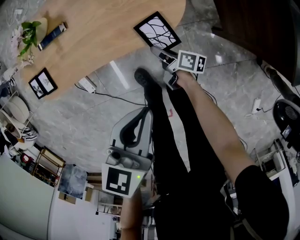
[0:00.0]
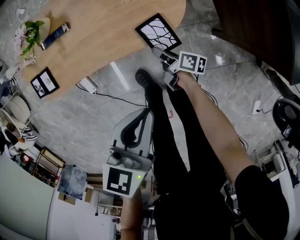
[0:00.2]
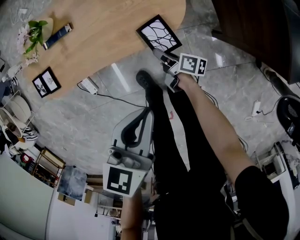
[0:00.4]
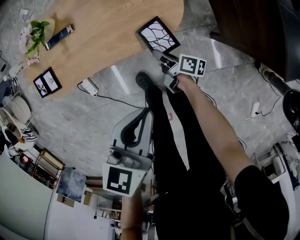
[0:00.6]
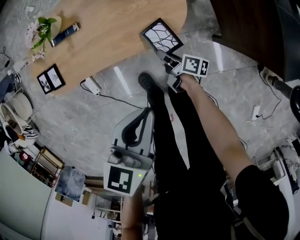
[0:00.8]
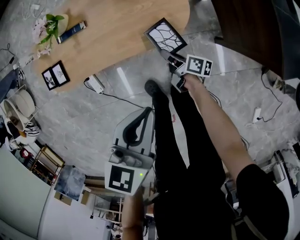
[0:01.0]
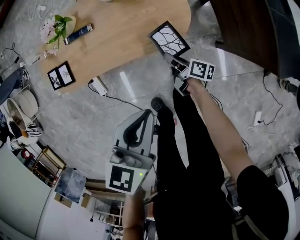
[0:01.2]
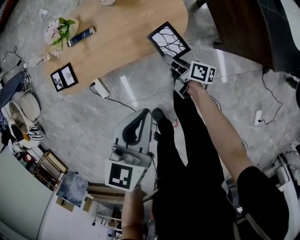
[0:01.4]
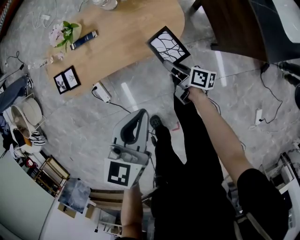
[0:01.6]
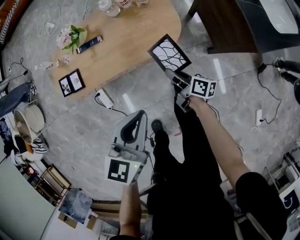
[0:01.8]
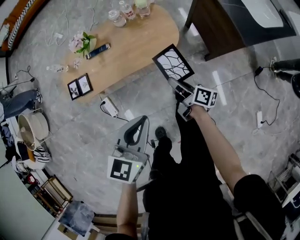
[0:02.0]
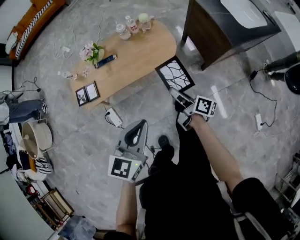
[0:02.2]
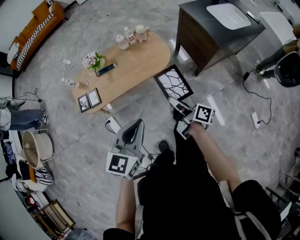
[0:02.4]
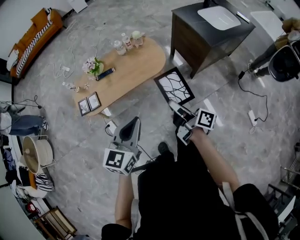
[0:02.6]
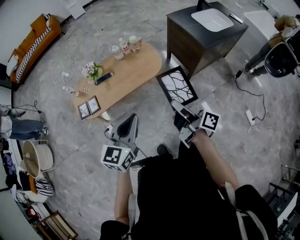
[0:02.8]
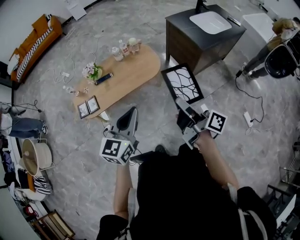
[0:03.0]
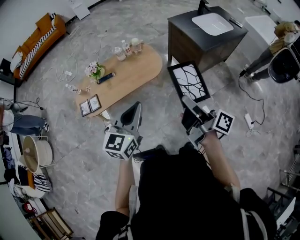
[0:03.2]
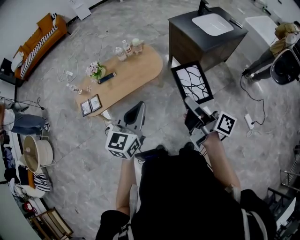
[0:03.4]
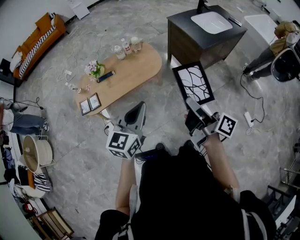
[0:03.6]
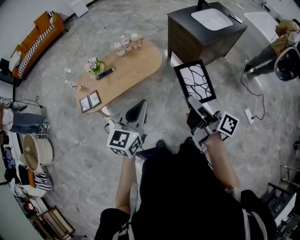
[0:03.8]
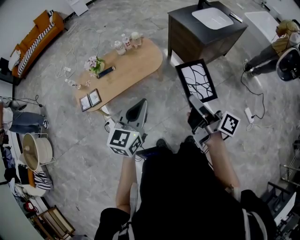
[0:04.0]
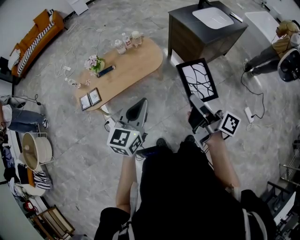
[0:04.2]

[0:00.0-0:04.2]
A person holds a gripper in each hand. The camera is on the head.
0:00.0 to 0:01.4: Both grippers travel together upward, approximately 10 cm.
0:01.4 to 0:02.8: The left gripper heads backward and upward, covering about 35 cm, and turns by approximately 30 degrees, while the right gripper heads upward and backward, covering some 60 cm, and swivels roughly 30 degrees.
0:02.8 to 0:04.2: The right gripper moves upward, approximately 10 cm.

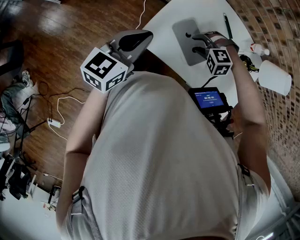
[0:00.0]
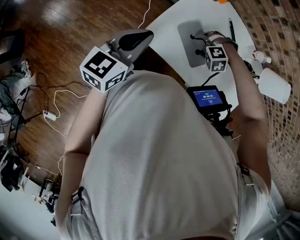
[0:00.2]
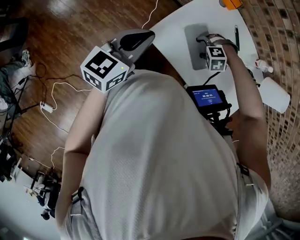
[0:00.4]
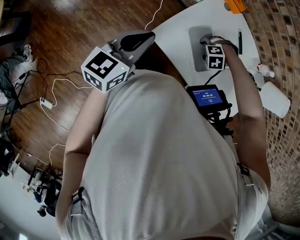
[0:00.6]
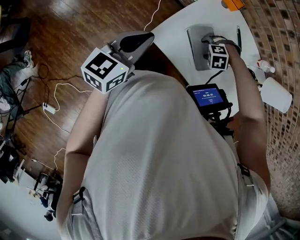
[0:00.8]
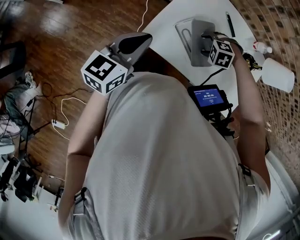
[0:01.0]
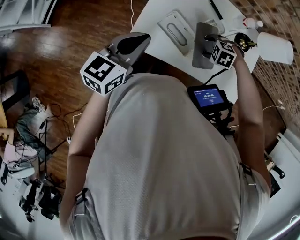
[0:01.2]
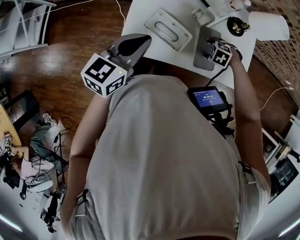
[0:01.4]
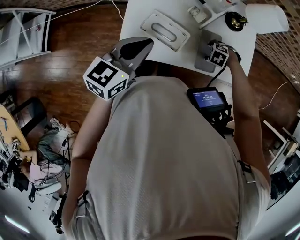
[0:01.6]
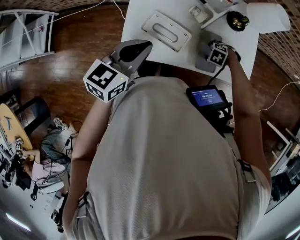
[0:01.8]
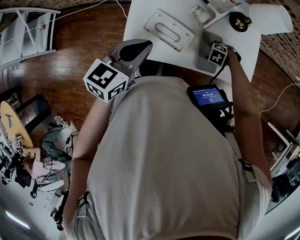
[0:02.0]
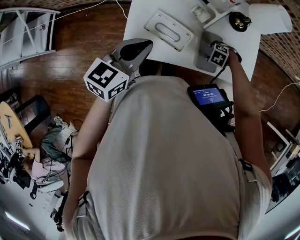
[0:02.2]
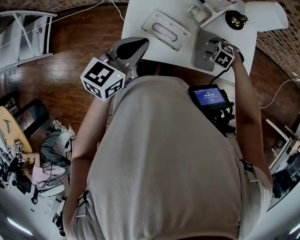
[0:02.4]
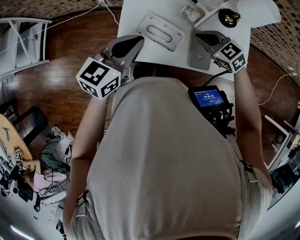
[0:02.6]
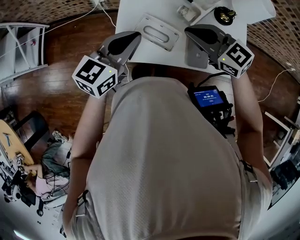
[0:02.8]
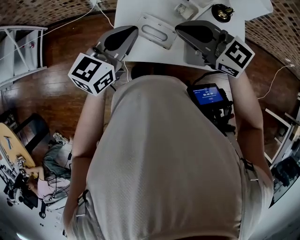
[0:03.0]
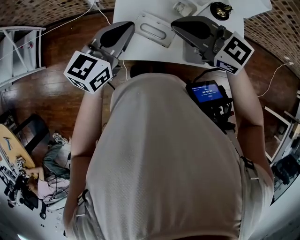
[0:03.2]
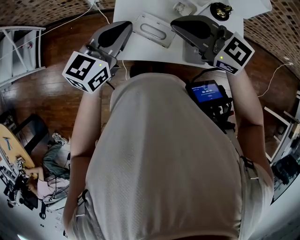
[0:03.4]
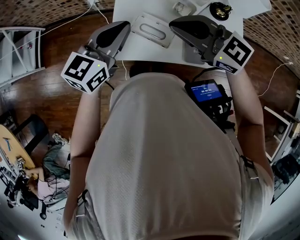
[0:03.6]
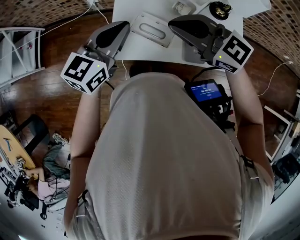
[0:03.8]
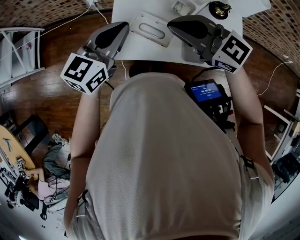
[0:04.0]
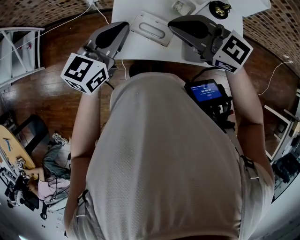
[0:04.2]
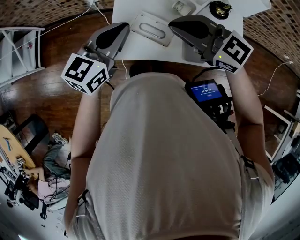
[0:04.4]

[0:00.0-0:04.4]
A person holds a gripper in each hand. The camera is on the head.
0:00.0 to 0:01.4: The right gripper goes up and down, about 5 cm each way, reversing 2 times, and changes its angle by roughly 40 degrees.
0:01.4 to 0:03.0: The right gripper travels upward by about 30 cm, points its fingers approximately 70 degrees further upward, and closes. The left gripper shifts by approximately 5 cm.
0:03.0 to 0:04.4: There are only small adjustments of the grippers.

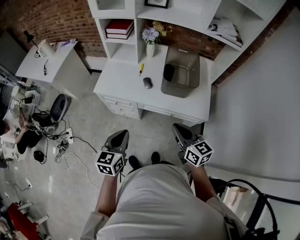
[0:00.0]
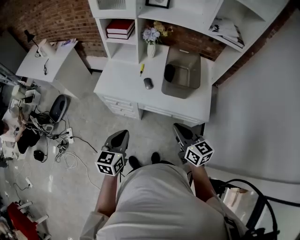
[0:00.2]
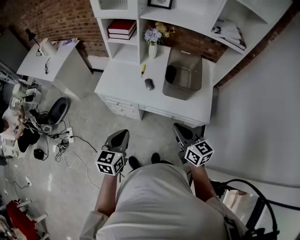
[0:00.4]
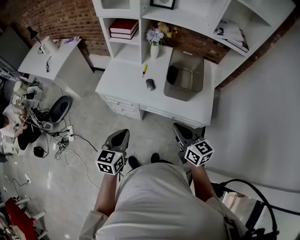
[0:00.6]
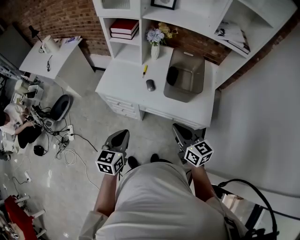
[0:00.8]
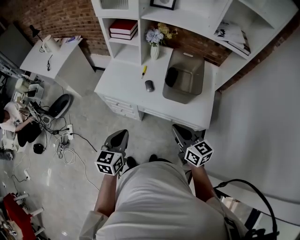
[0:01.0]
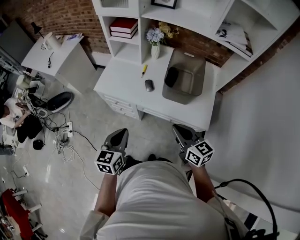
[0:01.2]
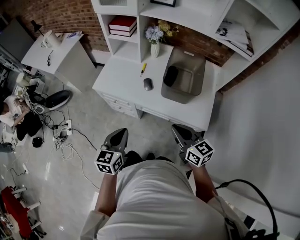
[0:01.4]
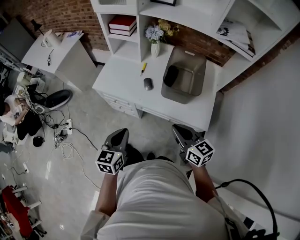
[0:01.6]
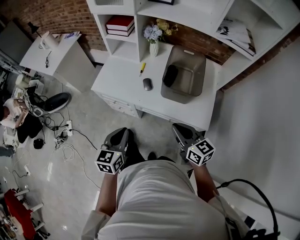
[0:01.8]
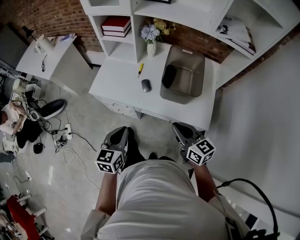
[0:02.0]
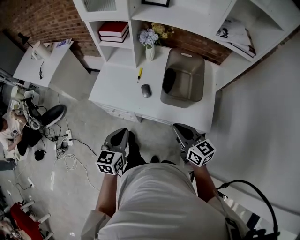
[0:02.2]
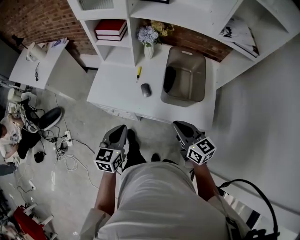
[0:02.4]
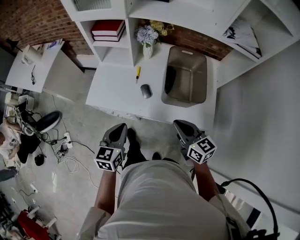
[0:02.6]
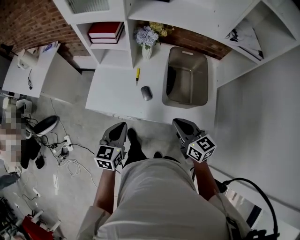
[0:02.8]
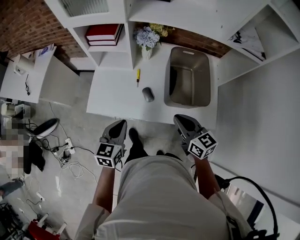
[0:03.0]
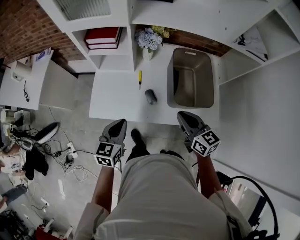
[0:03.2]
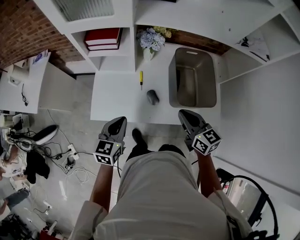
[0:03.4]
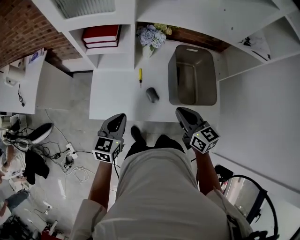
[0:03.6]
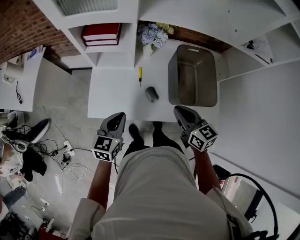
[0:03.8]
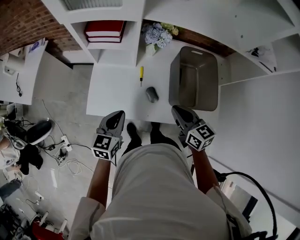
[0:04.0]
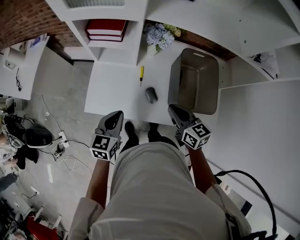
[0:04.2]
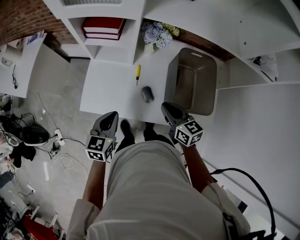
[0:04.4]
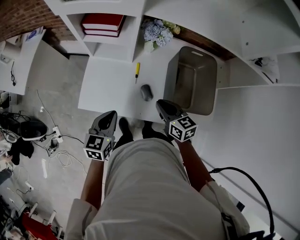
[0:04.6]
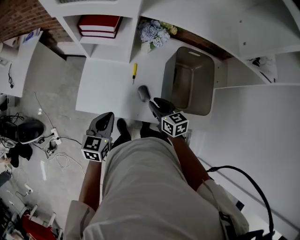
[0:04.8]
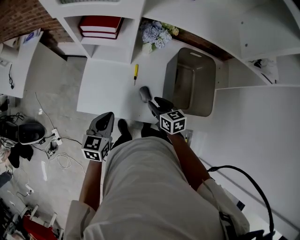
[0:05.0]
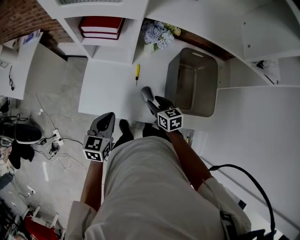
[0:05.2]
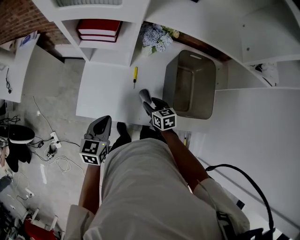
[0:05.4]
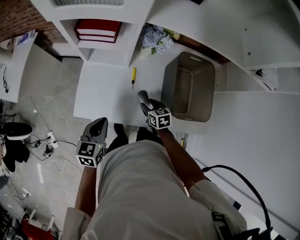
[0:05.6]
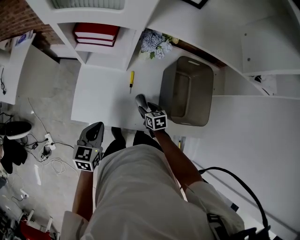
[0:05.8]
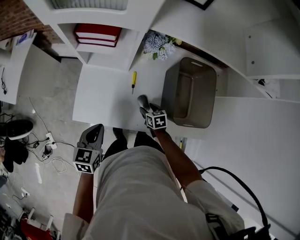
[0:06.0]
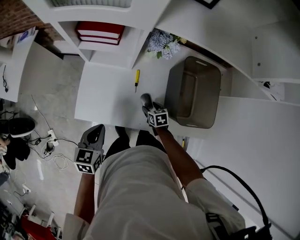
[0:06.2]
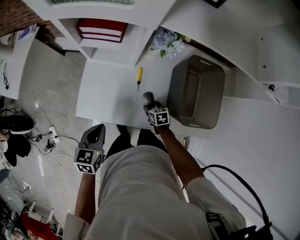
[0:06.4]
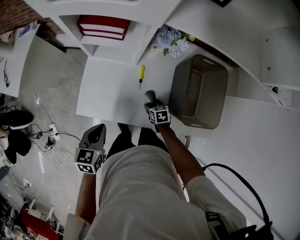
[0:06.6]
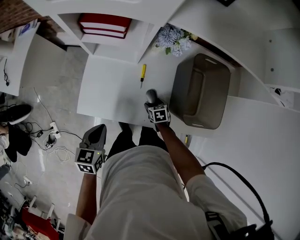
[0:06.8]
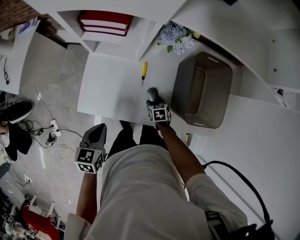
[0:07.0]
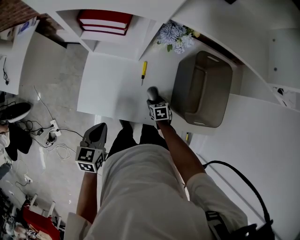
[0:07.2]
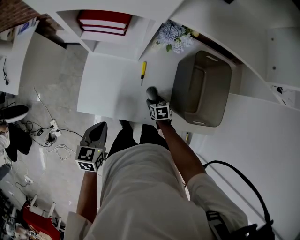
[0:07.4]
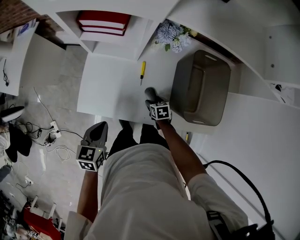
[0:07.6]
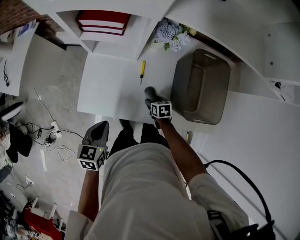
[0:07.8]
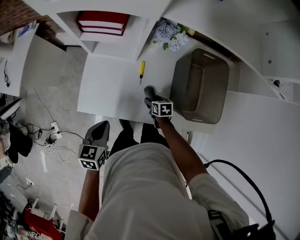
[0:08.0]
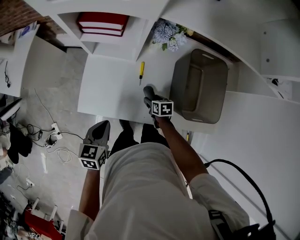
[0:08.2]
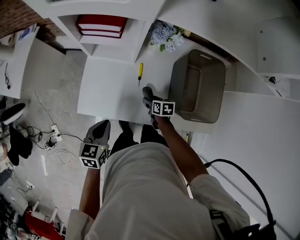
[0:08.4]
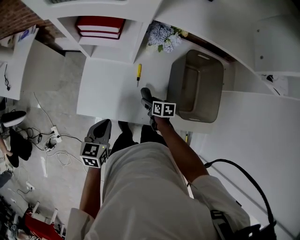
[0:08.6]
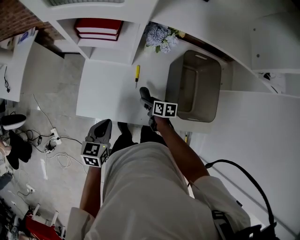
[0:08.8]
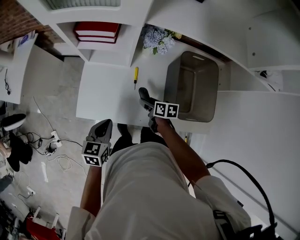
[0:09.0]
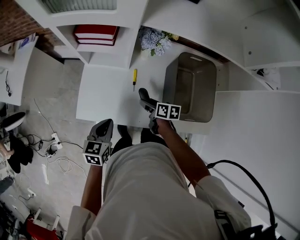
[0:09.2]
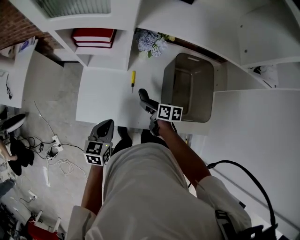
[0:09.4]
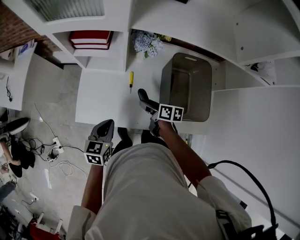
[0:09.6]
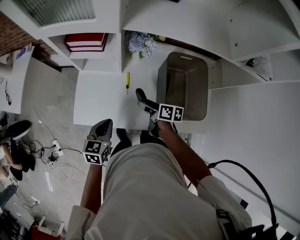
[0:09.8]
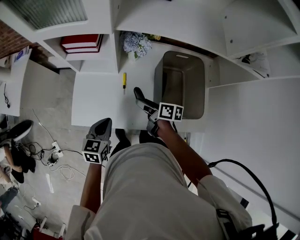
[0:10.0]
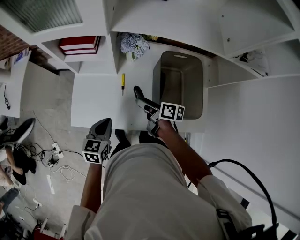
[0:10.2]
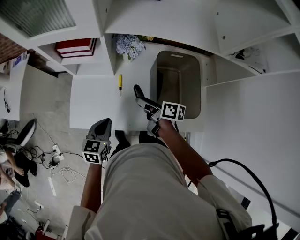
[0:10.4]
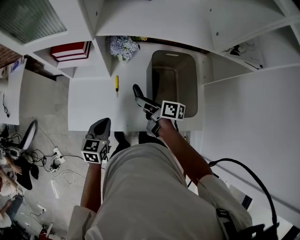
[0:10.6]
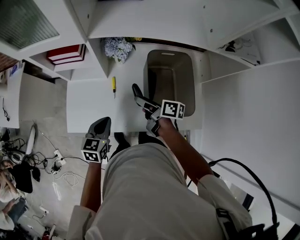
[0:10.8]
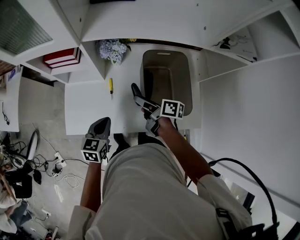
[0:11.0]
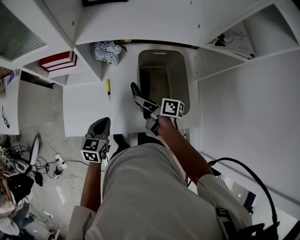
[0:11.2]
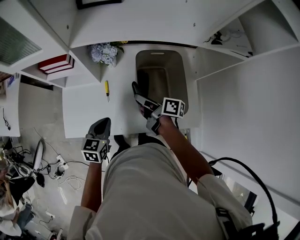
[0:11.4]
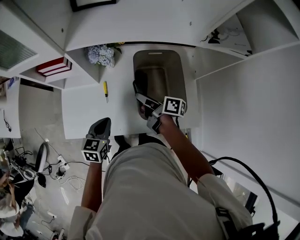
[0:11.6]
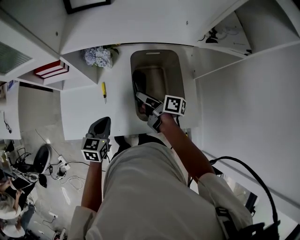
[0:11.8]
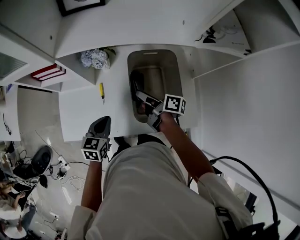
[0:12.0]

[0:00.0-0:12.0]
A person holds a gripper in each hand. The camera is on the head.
0:00.0 to 0:01.6: The two grippers go about 5 cm to the right.
0:01.6 to 0:03.0: Both grippers travel together forward, approximately 20 cm.
0:03.0 to 0:04.4: The right gripper shifts some 15 cm forward, to the left and downward; the left gripper moves forward and to the left, some 10 cm.
0:04.4 to 0:06.0: The right gripper moves downward, about 25 cm, tips its fingers downward by roughly 30 degrees, and opens up, while the left gripper moves some 5 cm.
0:06.0 to 0:07.6: The right gripper moves downward, roughly 5 cm.
0:07.6 to 0:09.0: The right gripper shifts some 10 cm upward, and rotates some 30 degrees.
0:09.0 to 0:10.4: The right gripper shifts roughly 15 cm upward, and rotates about 30 degrees. The left gripper shifts roughly 5 cm to the right.
0:10.4 to 0:12.0: The grippers both shift to the right by some 10 cm.

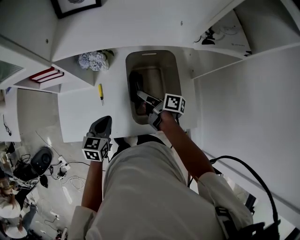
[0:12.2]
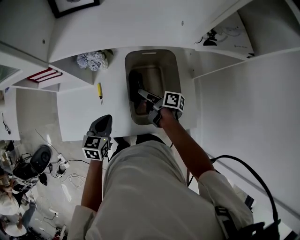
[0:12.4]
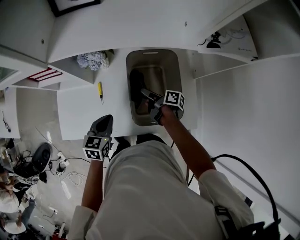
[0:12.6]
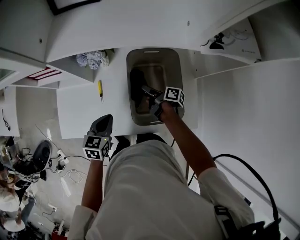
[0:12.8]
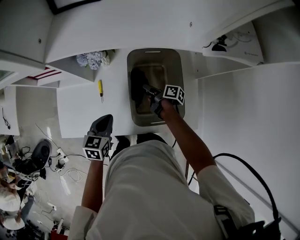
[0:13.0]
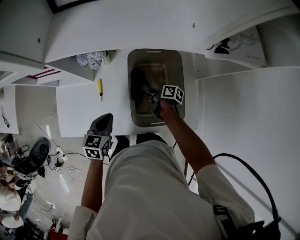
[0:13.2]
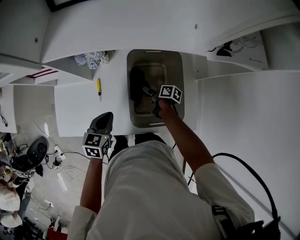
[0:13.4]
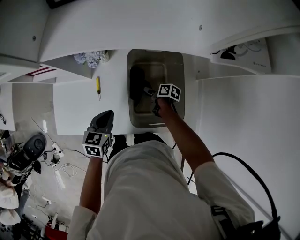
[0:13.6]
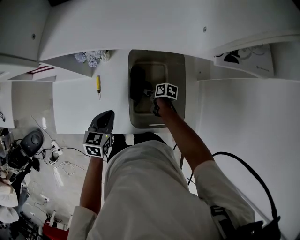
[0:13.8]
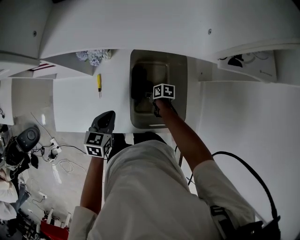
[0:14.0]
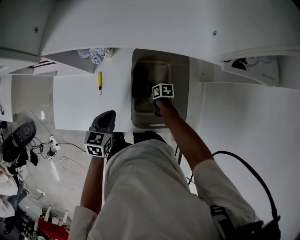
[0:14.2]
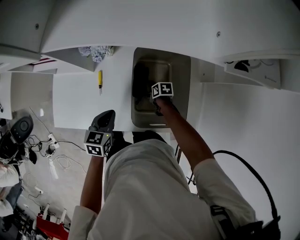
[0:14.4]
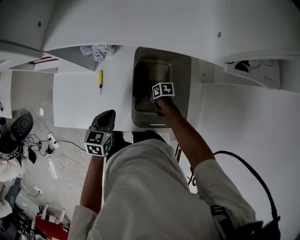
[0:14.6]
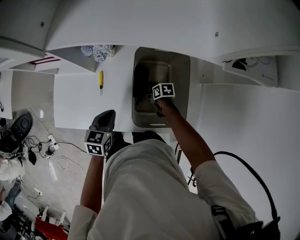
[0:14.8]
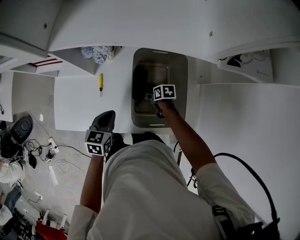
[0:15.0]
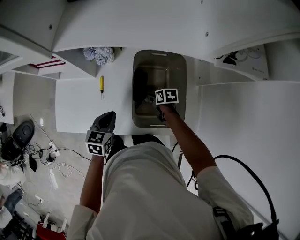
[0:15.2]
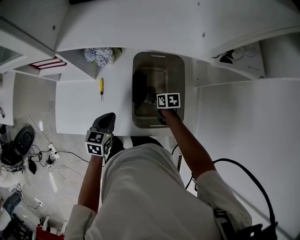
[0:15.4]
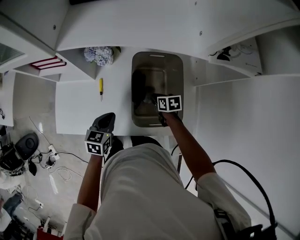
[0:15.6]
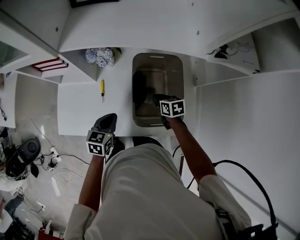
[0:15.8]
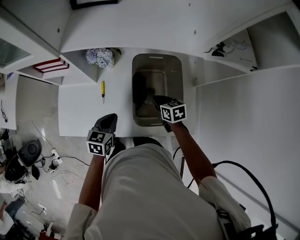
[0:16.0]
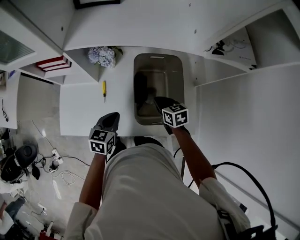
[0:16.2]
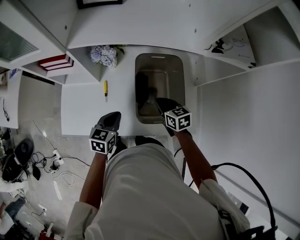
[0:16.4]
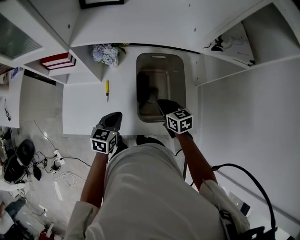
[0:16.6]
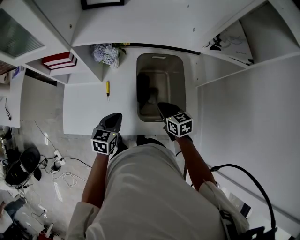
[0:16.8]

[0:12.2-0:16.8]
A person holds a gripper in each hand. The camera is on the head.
0:12.2 to 0:13.8: The left gripper ends up approximately 5 cm from where it was. Meanwhile the right gripper goes about 20 cm downward, and tips its fingers downward by approximately 40 degrees.
0:13.8 to 0:15.2: The right gripper changes its angle by approximately 20 degrees.
0:15.2 to 0:16.8: The right gripper moves upward and backward, some 20 cm, rotates about 30 degrees, and closes its fingers.
